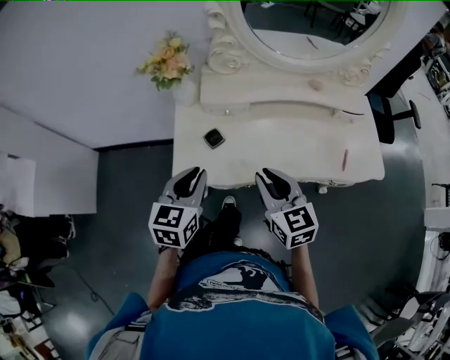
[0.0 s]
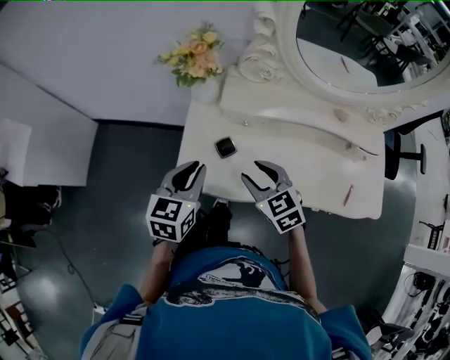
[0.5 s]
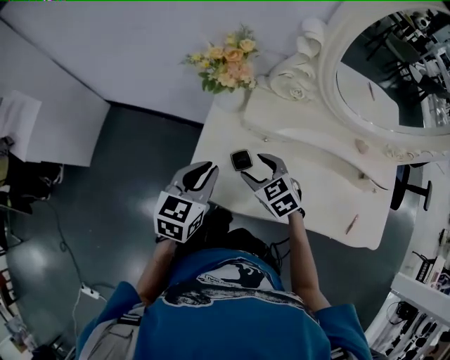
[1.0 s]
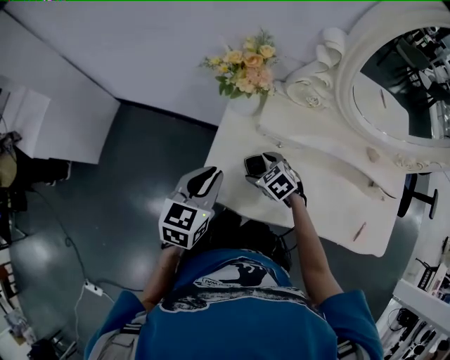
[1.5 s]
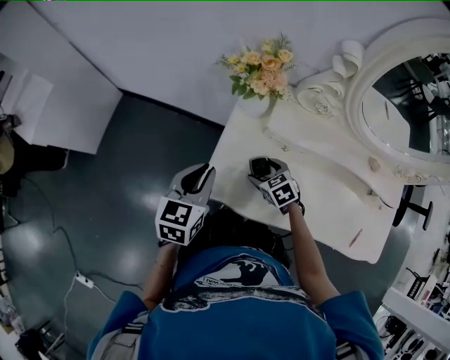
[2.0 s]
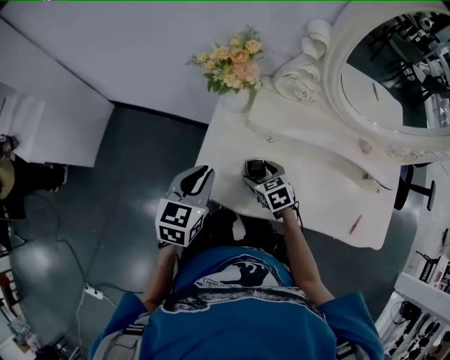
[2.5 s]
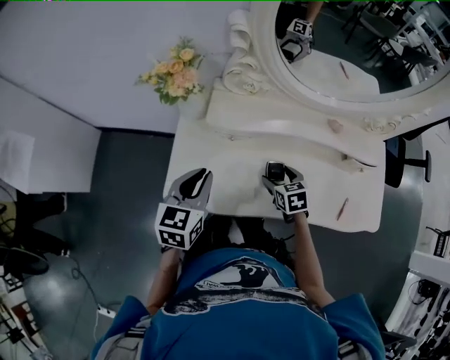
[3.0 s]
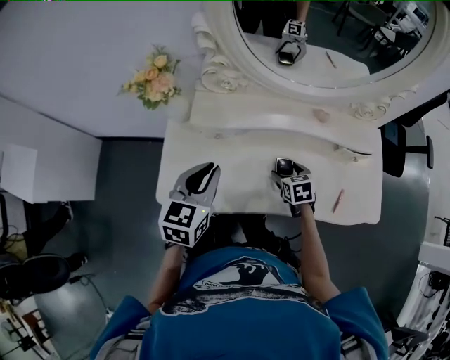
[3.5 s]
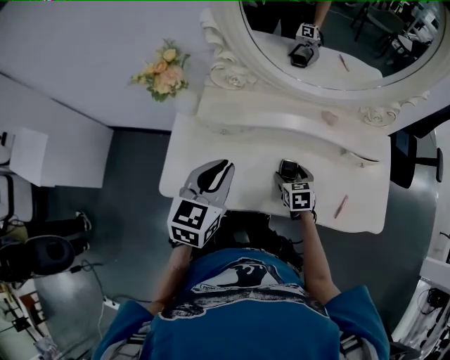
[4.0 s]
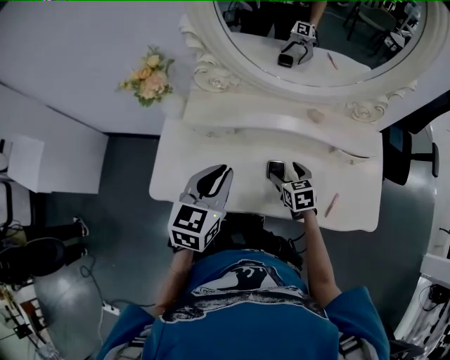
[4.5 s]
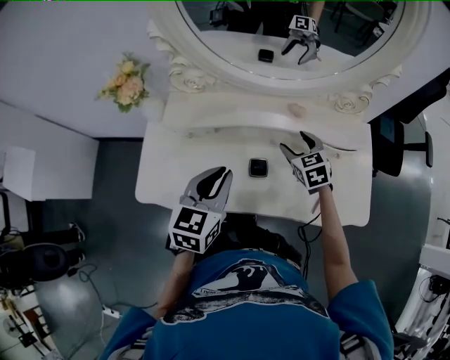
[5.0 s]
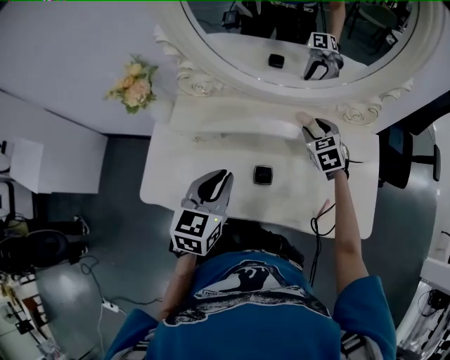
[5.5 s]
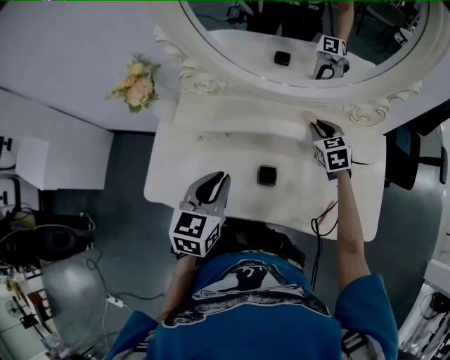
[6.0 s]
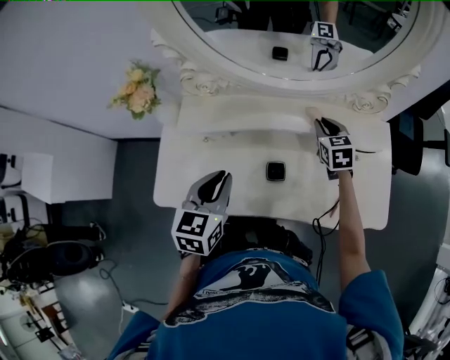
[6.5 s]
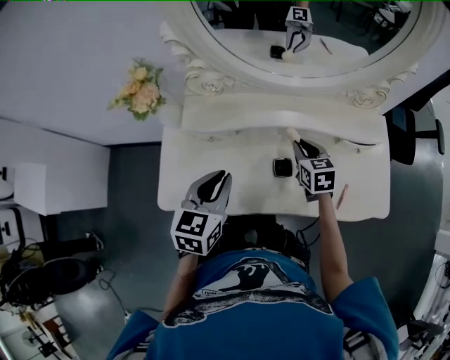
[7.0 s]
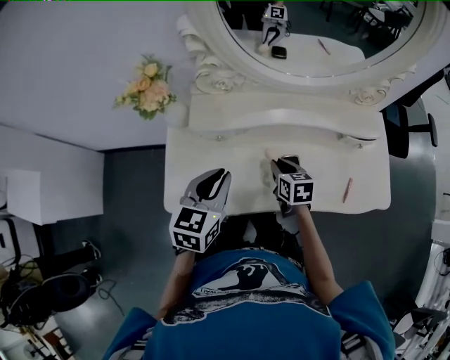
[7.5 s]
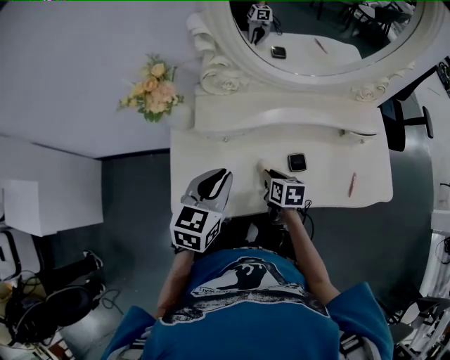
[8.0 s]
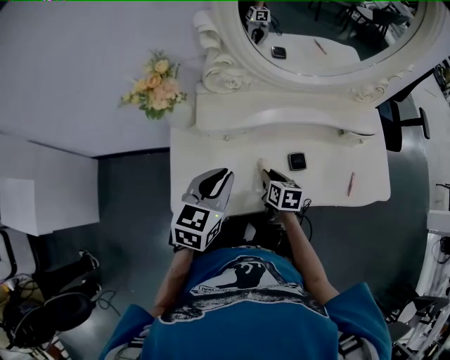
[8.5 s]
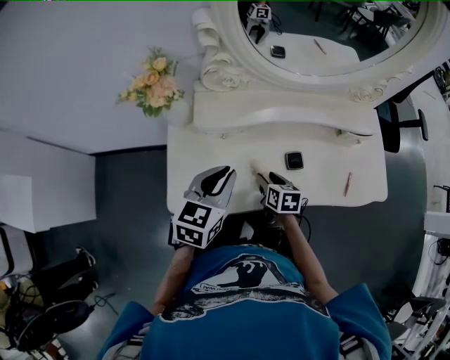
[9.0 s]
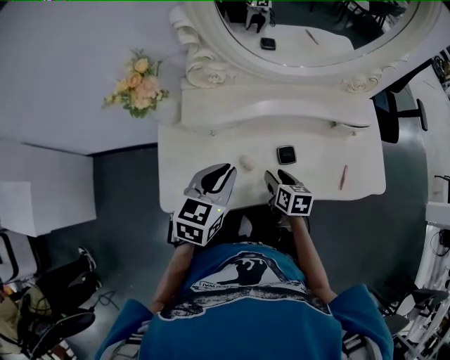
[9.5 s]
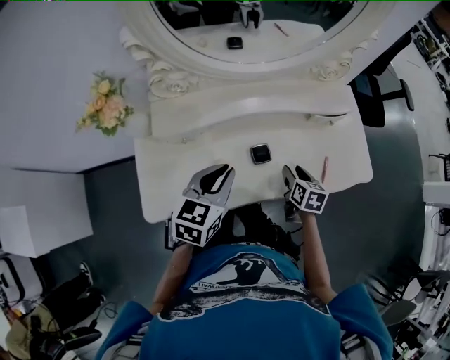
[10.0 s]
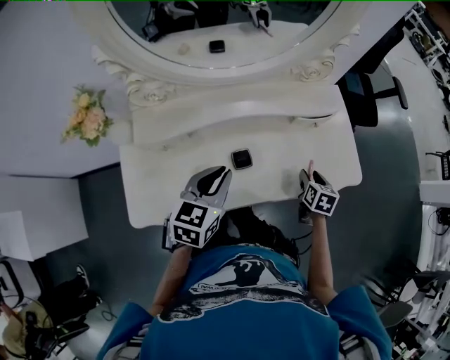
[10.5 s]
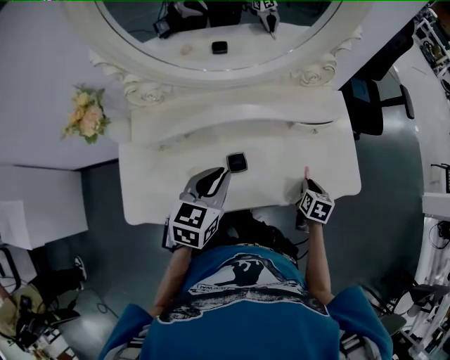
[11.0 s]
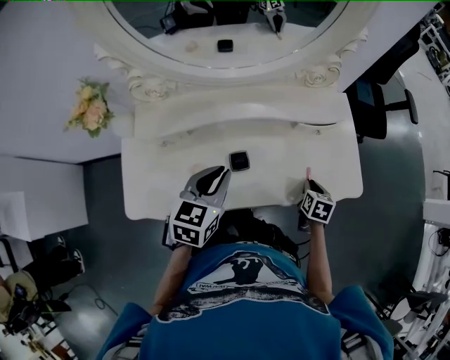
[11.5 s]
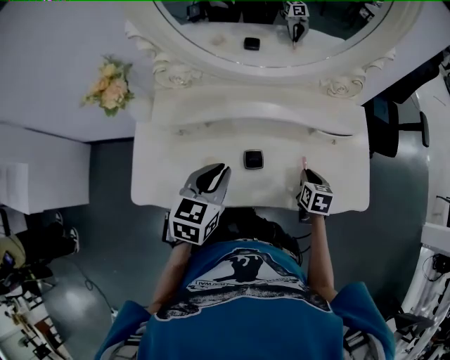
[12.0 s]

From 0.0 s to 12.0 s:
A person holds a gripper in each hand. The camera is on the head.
From 0.0 s to 2.0 s: The right gripper goes roughly 20 cm downward, tilts its fingers approximately 40 degrees downward, and opens; the left gripper shifts by some 15 cm.
From 2.0 s to 4.0 s: Both grippers move to the right, some 30 cm. The right gripper rotates some 40 degrees.
From 4.0 s to 6.0 s: The right gripper shifts some 25 cm forward, to the right and upward, and closes, while the left gripper moves to the right, about 5 cm.
From 6.0 s to 8.0 s: The left gripper heads to the left, covering some 15 cm. The right gripper moves to the left, backward and downward, roughly 30 cm, and rotates around the line of its fingers by about 50 degrees, clockwise from behind.
From 8.0 s to 10.0 s: The left gripper goes about 10 cm to the right. Meanwhile the right gripper travels to the right by approximately 20 cm, and opens up.
From 10.0 s to 12.0 s: The right gripper heads to the right and forward, covering roughly 10 cm, and closes up.

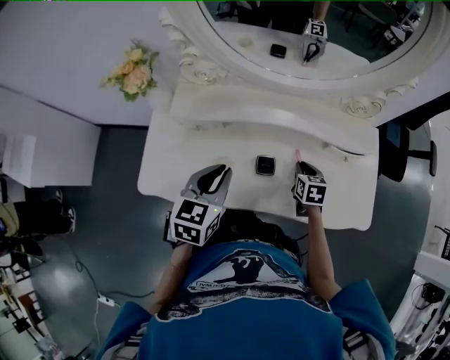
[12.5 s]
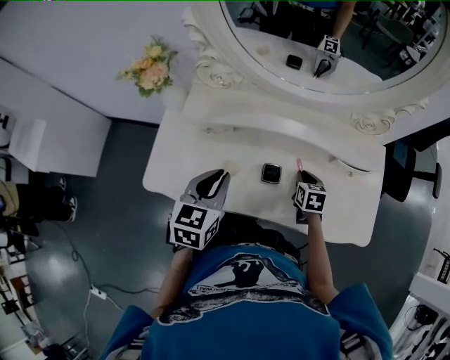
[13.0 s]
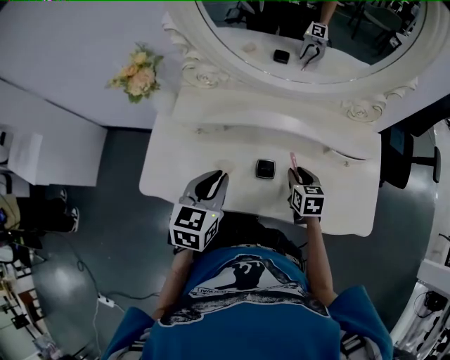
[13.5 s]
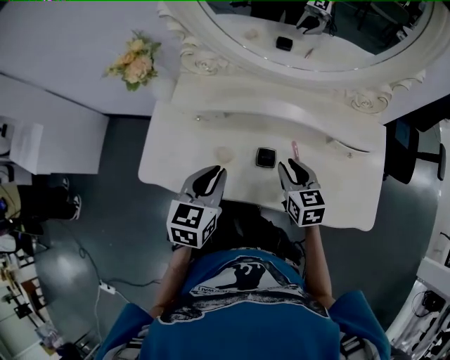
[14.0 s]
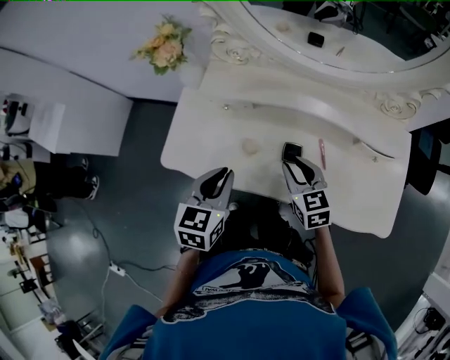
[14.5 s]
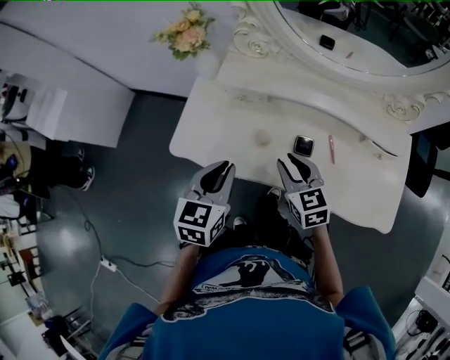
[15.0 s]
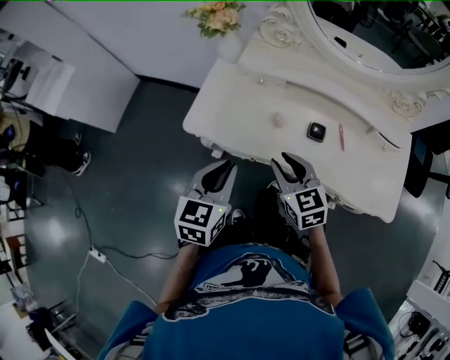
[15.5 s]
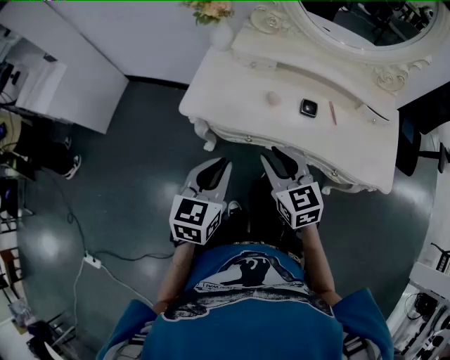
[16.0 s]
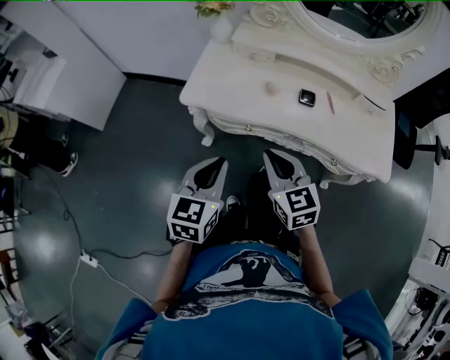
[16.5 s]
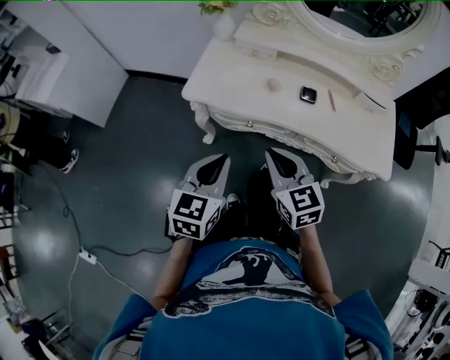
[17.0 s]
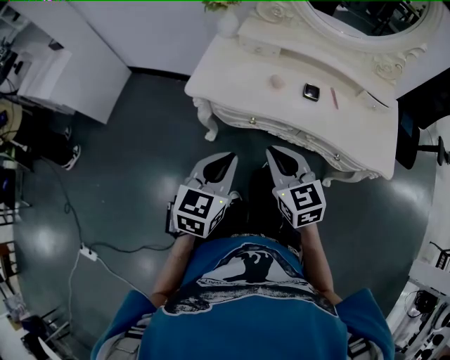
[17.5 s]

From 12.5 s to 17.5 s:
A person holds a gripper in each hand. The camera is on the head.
From 12.5 s to 15.0 s: The right gripper goes some 25 cm to the left, upward and backward, and turns by approximately 40 degrees, while the left gripper moves backward and to the left, approximately 10 cm.
From 15.0 s to 17.5 s: The left gripper is displaced backward by about 20 cm; the right gripper is displaced backward and to the left by about 25 cm.

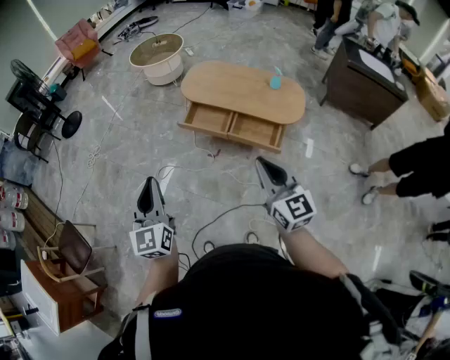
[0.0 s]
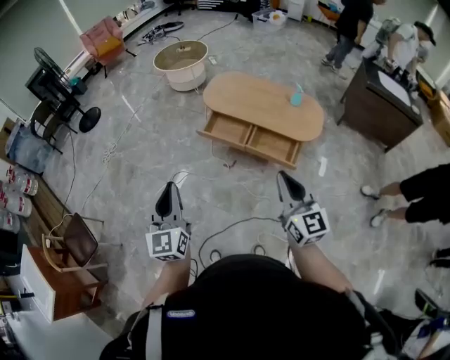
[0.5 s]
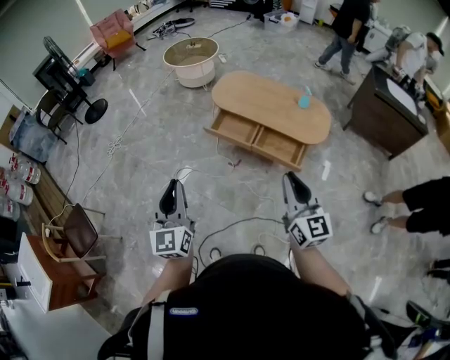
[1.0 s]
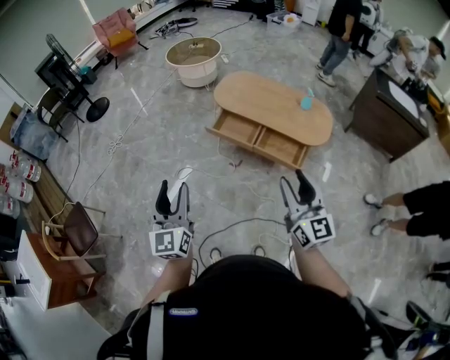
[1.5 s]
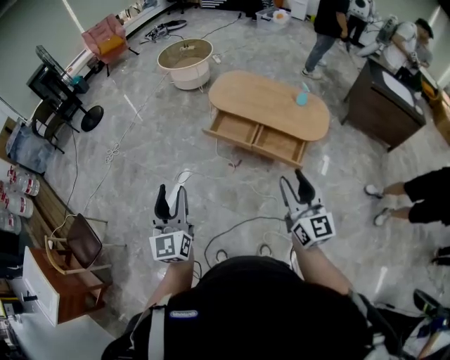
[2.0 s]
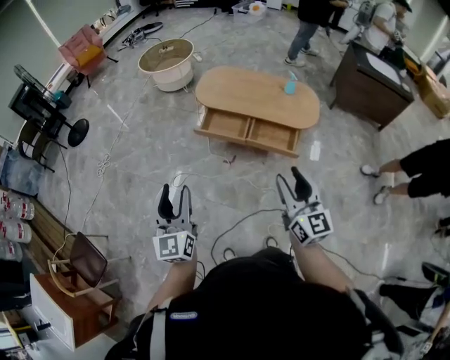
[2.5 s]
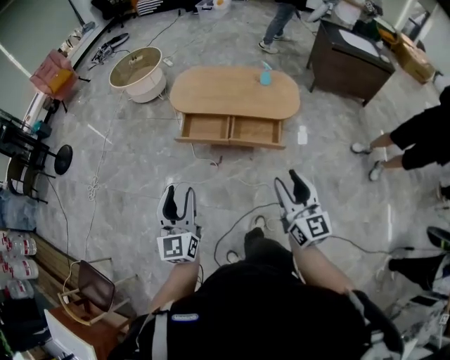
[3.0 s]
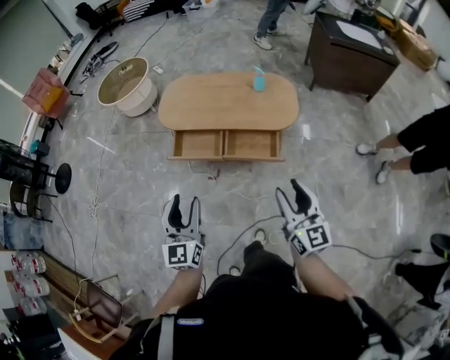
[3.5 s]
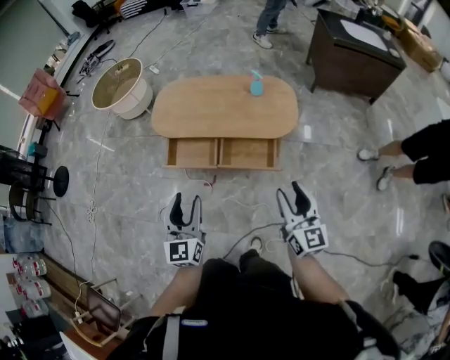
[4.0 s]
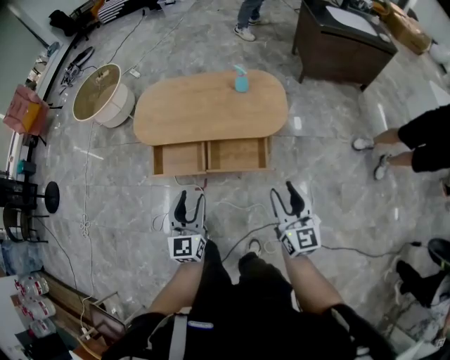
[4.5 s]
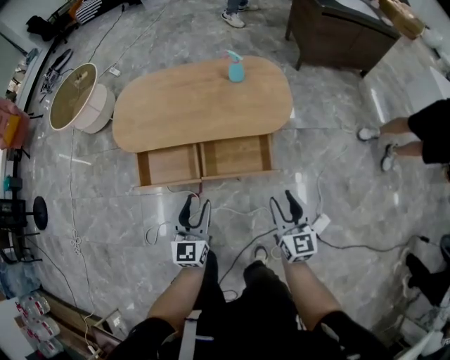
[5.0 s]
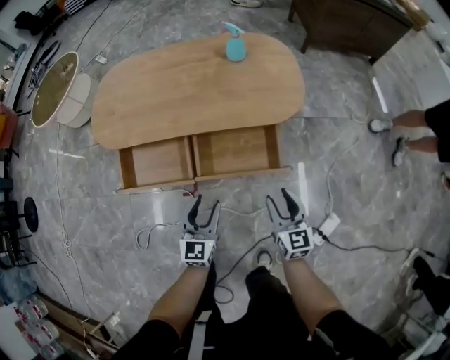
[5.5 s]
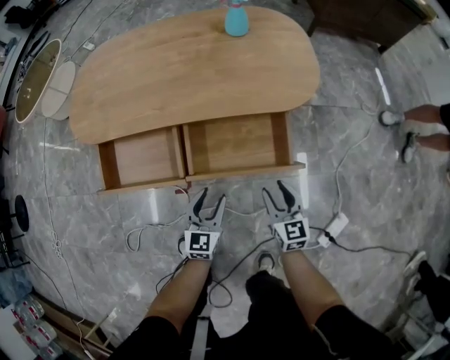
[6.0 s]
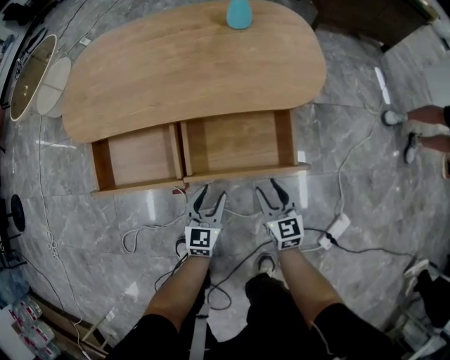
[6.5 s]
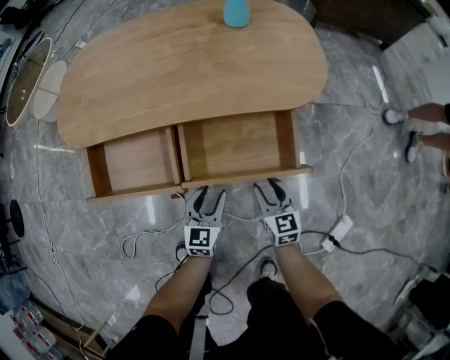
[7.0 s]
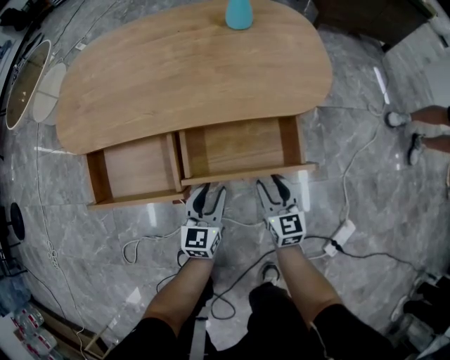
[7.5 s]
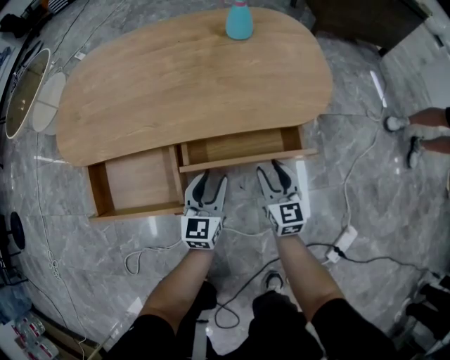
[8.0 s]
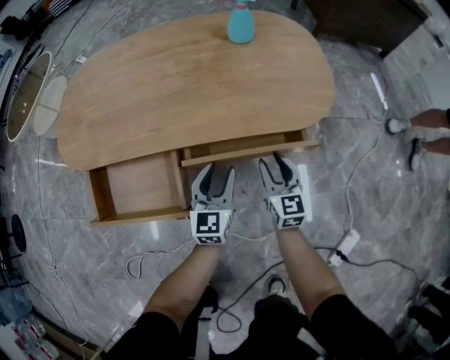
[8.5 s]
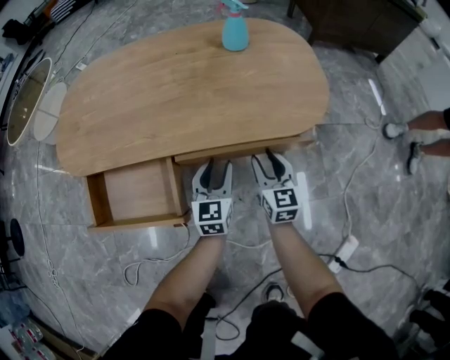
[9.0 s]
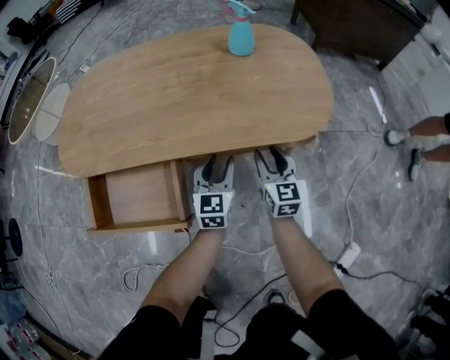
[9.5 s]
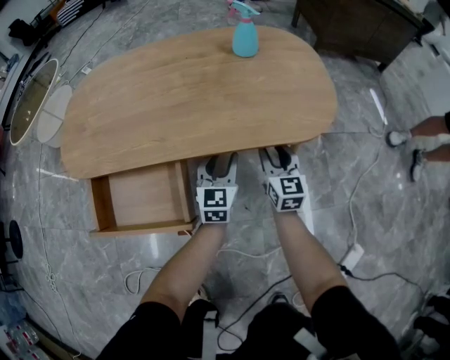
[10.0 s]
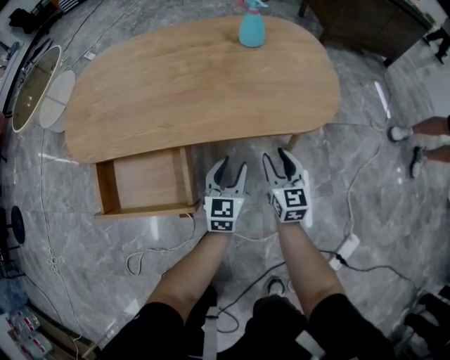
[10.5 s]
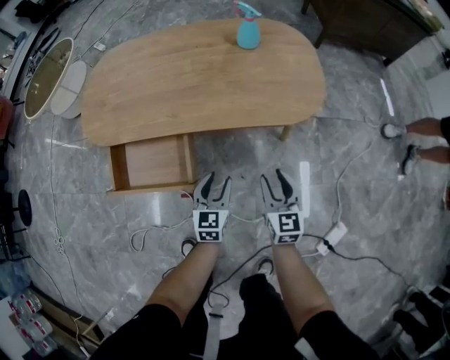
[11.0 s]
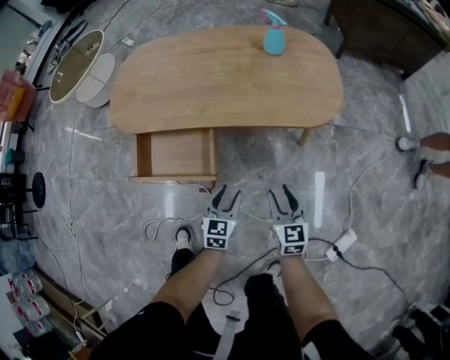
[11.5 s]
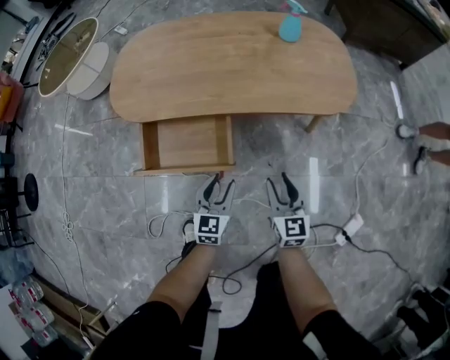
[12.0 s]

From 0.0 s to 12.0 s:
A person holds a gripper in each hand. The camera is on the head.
From 0.0 s to 2.0 s: The right gripper opens up. The left gripper opens its fingers.
From 2.0 s to 4.0 s: The right gripper moves to the right, forward and downward, about 25 cm, and turns by approximately 20 degrees. The left gripper shifts roughly 35 cm forward, to the right and downward, and rotates about 30 degrees.
From 4.0 s to 6.0 s: The two grippers go some 50 cm downward. The right gripper changes its angle by approximately 20 degrees; the left gripper turns by about 30 degrees.
From 6.0 s to 8.0 s: The grippers both shift forward by roughly 15 cm.
From 8.0 s to 10.0 s: Both grippers travel together forward, approximately 10 cm.
From 10.0 s to 12.0 s: The left gripper travels backward and to the left by approximately 25 cm, while the right gripper is displaced backward, to the left and upward by approximately 30 cm.
